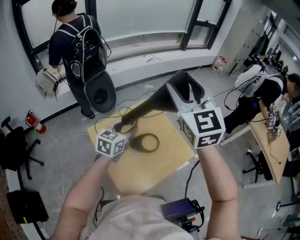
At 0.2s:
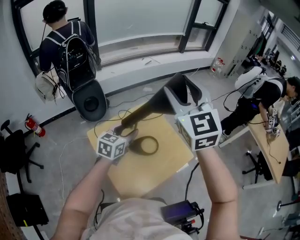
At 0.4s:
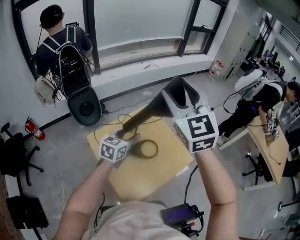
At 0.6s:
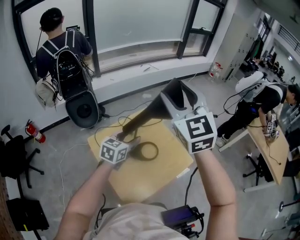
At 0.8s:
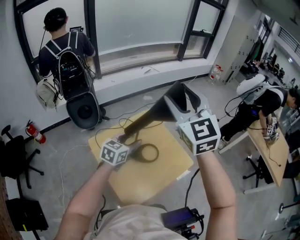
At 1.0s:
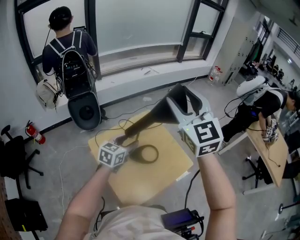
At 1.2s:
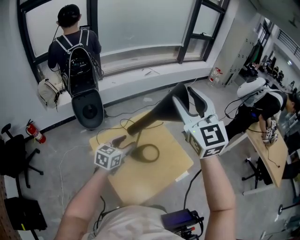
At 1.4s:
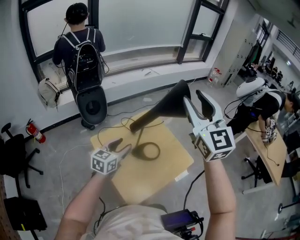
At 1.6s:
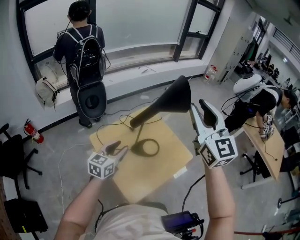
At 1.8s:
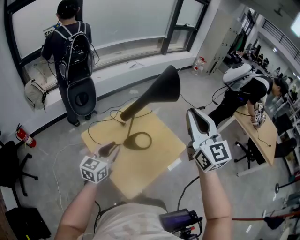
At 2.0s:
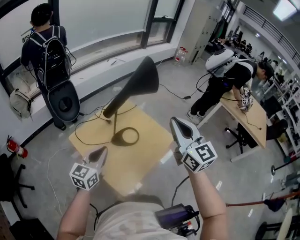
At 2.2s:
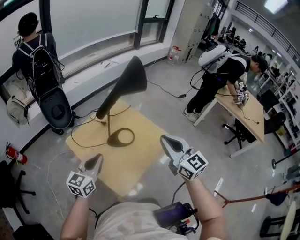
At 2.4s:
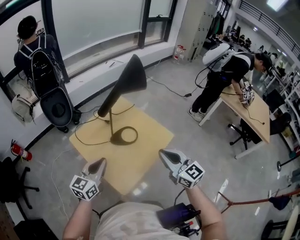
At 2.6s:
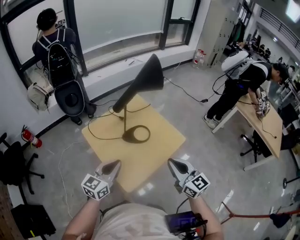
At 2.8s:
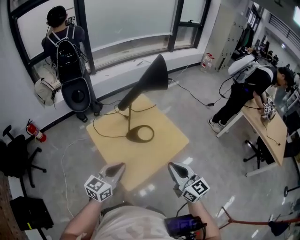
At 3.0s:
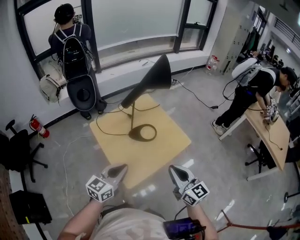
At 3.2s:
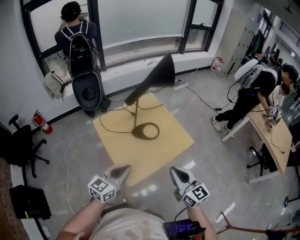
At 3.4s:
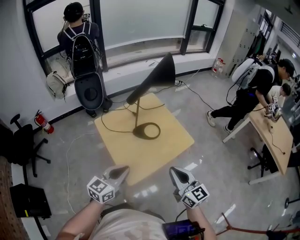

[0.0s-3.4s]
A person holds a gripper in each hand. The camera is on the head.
0.0s to 1.6s: The left gripper heads backward and to the left, covering some 10 cm; the right gripper goes roughly 10 cm backward and to the right.
1.6s to 3.4s: The left gripper shifts about 20 cm backward, and closes up, while the right gripper is displaced downward and backward by approximately 35 cm, turns by some 30 degrees, and closes its fingers.

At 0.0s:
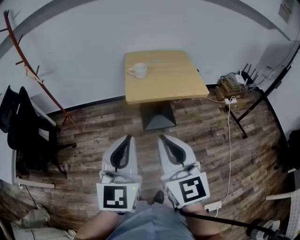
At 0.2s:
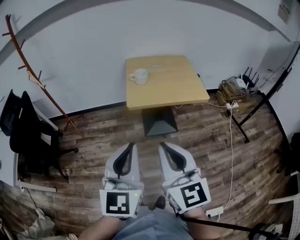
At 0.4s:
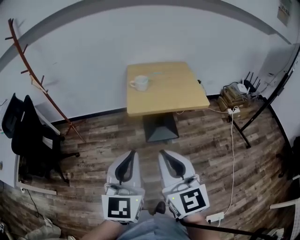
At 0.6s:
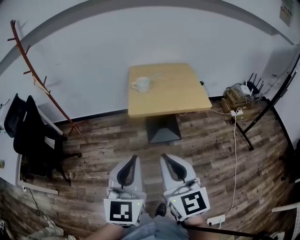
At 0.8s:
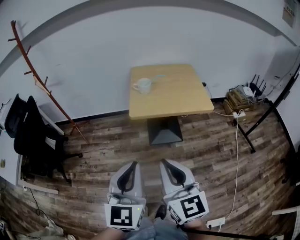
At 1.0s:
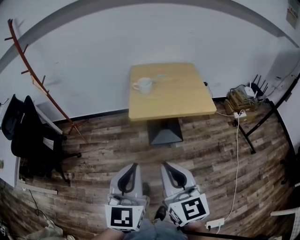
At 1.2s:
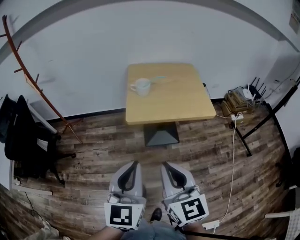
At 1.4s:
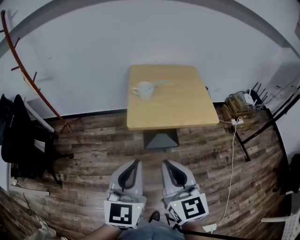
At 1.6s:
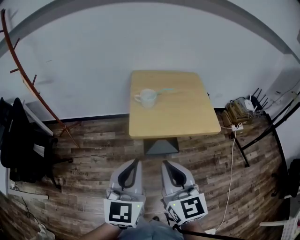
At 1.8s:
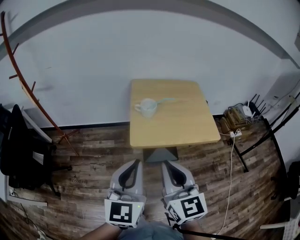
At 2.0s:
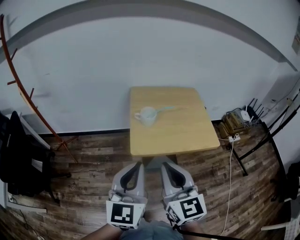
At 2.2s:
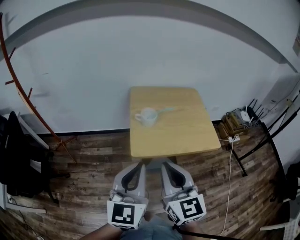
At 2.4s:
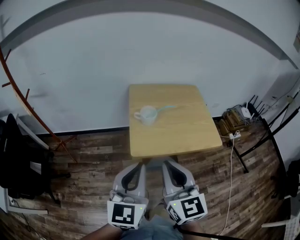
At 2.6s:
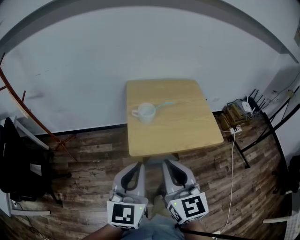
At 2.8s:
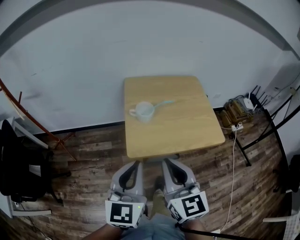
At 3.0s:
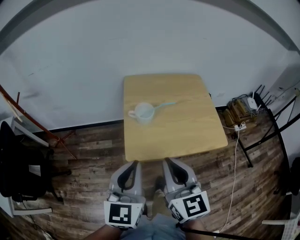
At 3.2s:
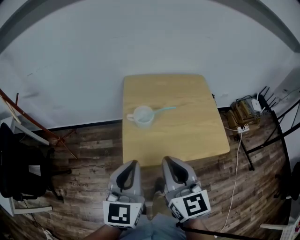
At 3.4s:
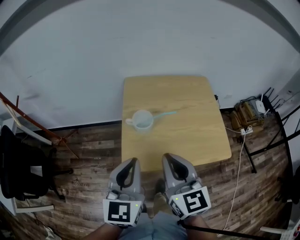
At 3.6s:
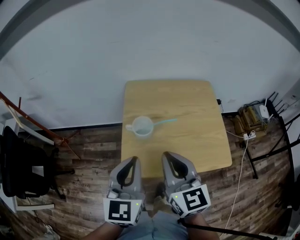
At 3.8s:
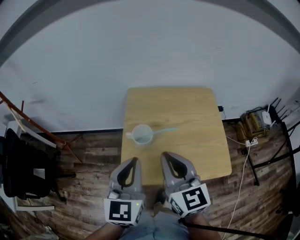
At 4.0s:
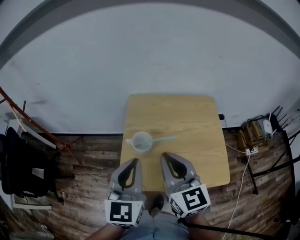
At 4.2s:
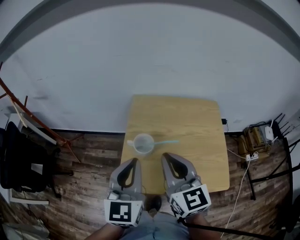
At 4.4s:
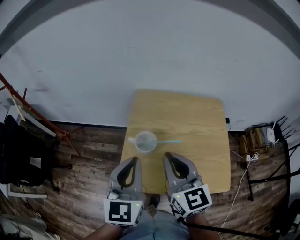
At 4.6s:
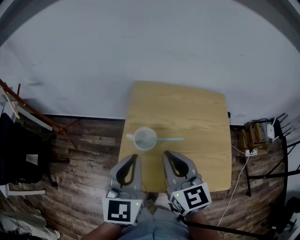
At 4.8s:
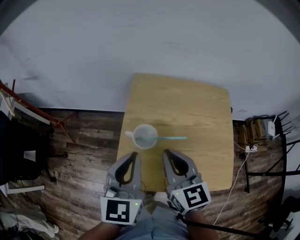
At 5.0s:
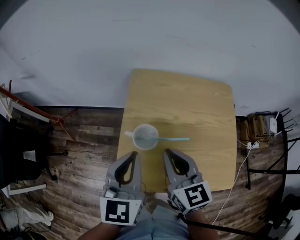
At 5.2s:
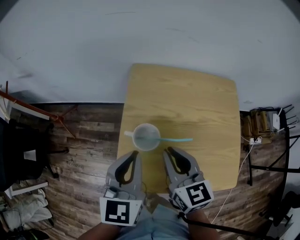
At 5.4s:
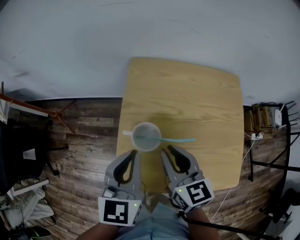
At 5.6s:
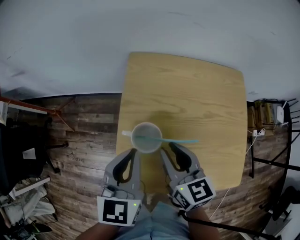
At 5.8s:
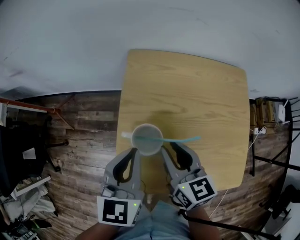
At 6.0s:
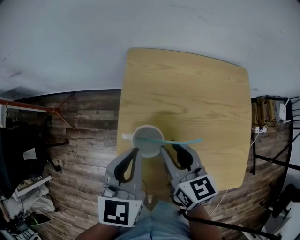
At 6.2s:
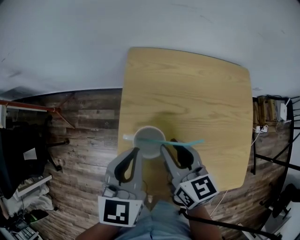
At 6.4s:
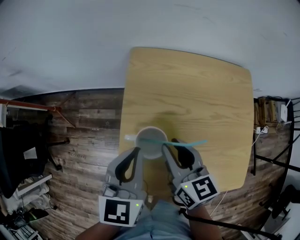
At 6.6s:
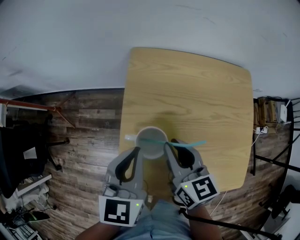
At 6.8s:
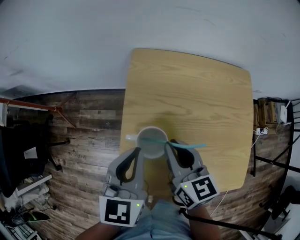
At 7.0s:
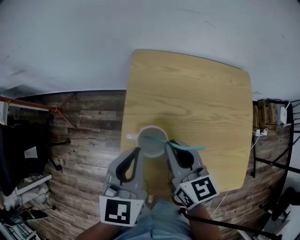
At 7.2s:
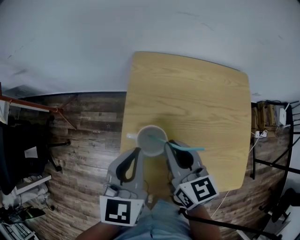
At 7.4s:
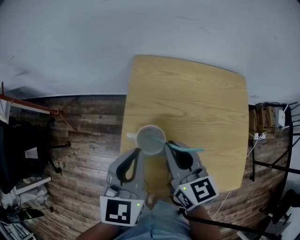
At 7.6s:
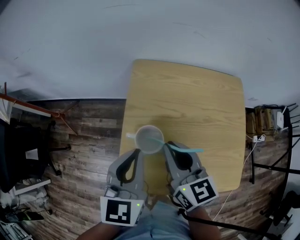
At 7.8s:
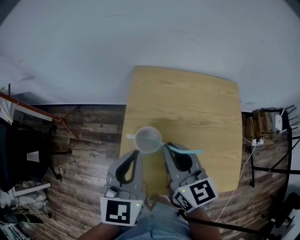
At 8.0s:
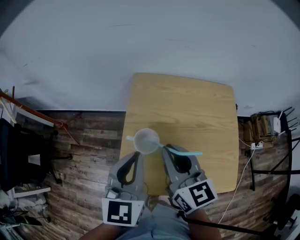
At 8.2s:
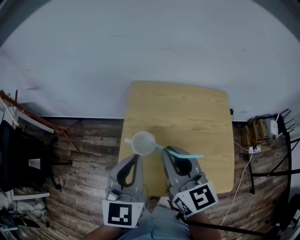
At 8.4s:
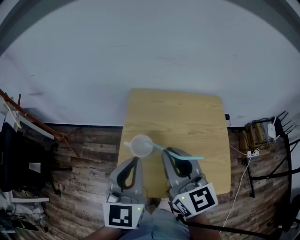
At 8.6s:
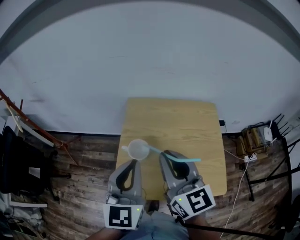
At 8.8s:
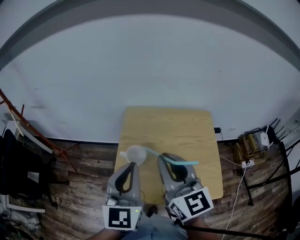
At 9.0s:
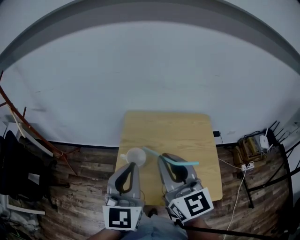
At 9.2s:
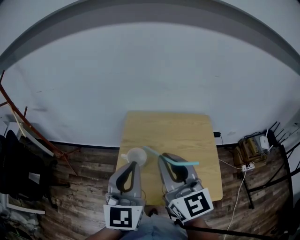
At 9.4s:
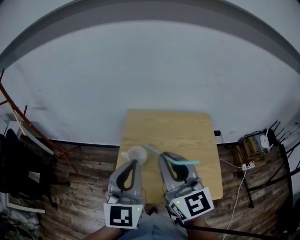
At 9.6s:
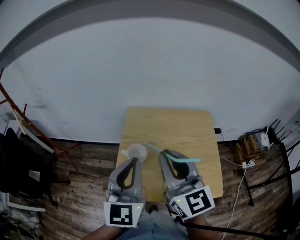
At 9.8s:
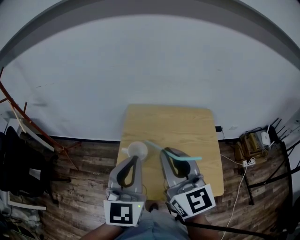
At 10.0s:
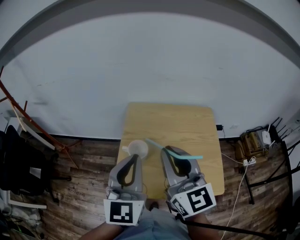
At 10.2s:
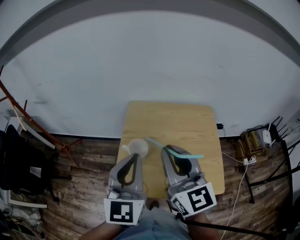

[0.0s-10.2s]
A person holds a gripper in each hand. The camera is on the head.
0.0s to 1.4s: Both grippers travel together forward and downward, roughly 15 cm.
1.4s to 3.0s: Both grippers move forward, some 20 cm.
3.0s to 4.4s: Both grippers move forward, approximately 20 cm.
4.4s to 5.8s: The two grippers go about 15 cm downward and forward. The right gripper rotates some 20 degrees, and opens its fingers.
5.8s to 7.2s: The grippers stay close to where they were, moving slightly.
7.2s to 8.8s: Both grippers move upward and backward, roughly 20 cm. The left gripper turns by approximately 20 degrees, while the right gripper turns by roughly 30 degrees.
8.8s to 10.2s: The grippers stay close to where they were, moving slightly.

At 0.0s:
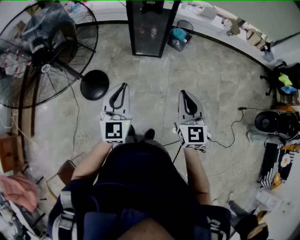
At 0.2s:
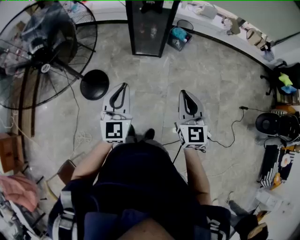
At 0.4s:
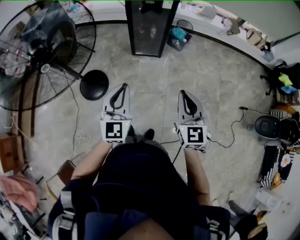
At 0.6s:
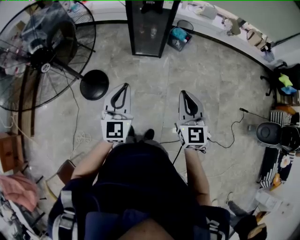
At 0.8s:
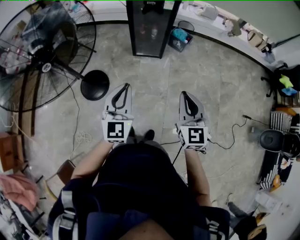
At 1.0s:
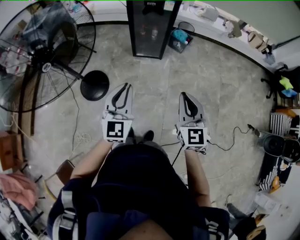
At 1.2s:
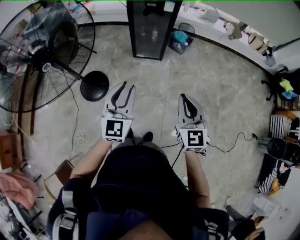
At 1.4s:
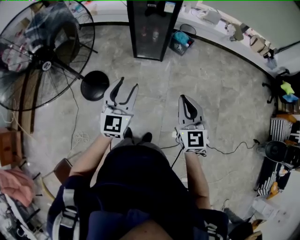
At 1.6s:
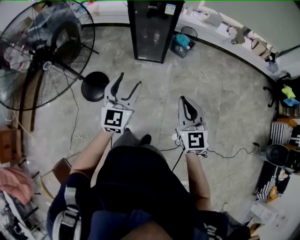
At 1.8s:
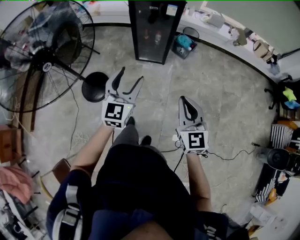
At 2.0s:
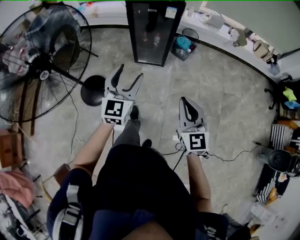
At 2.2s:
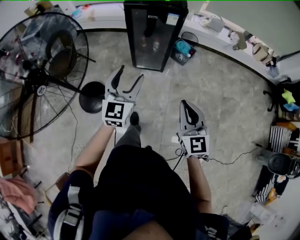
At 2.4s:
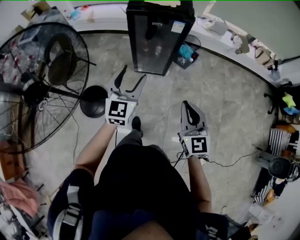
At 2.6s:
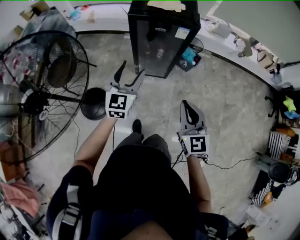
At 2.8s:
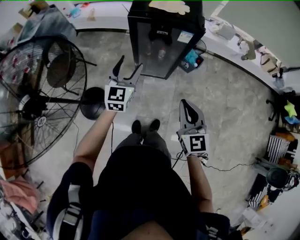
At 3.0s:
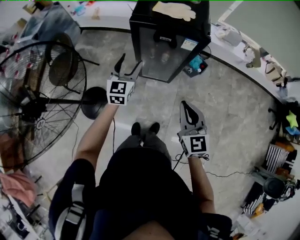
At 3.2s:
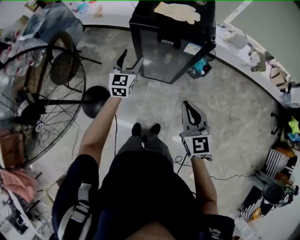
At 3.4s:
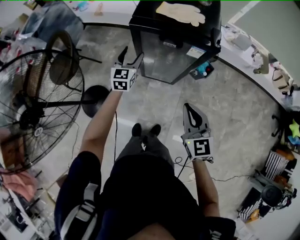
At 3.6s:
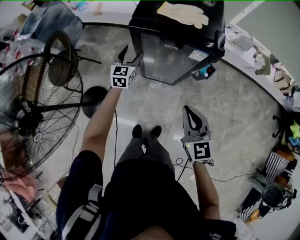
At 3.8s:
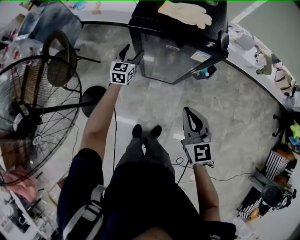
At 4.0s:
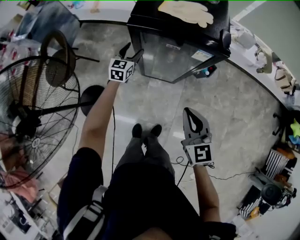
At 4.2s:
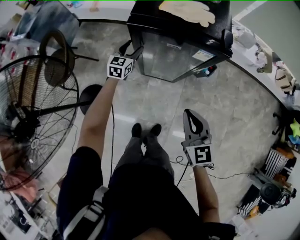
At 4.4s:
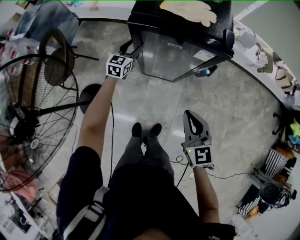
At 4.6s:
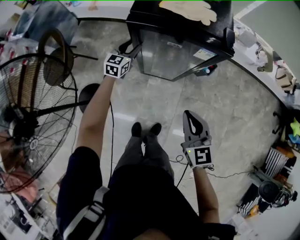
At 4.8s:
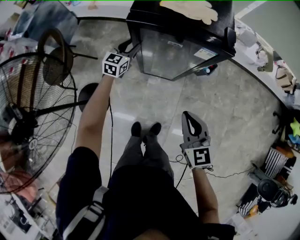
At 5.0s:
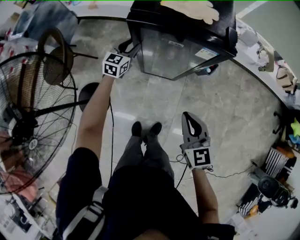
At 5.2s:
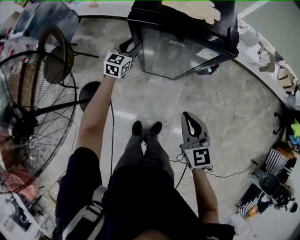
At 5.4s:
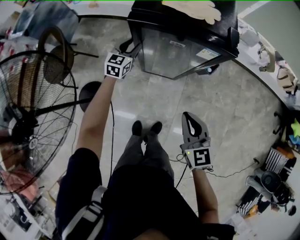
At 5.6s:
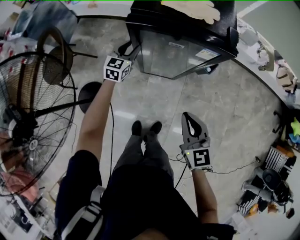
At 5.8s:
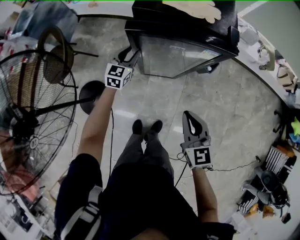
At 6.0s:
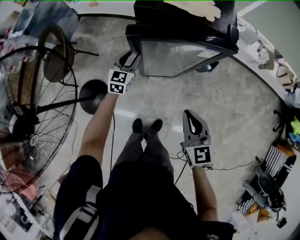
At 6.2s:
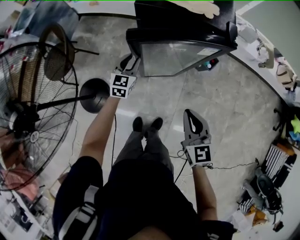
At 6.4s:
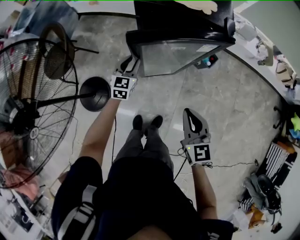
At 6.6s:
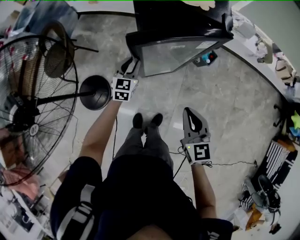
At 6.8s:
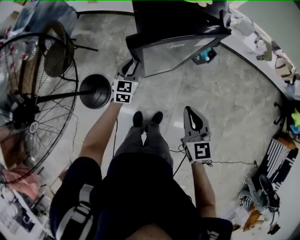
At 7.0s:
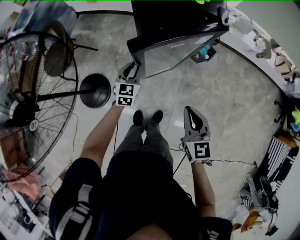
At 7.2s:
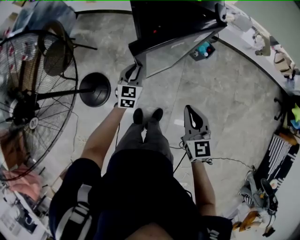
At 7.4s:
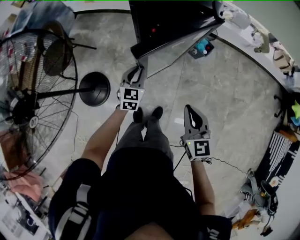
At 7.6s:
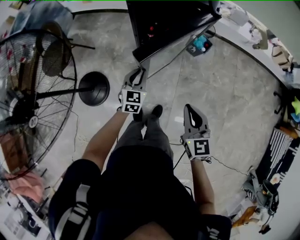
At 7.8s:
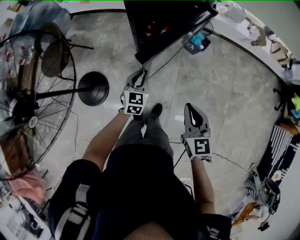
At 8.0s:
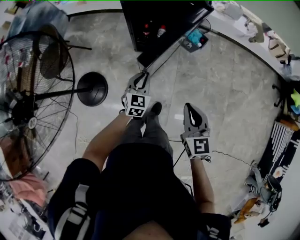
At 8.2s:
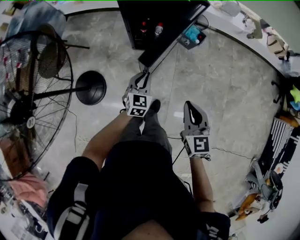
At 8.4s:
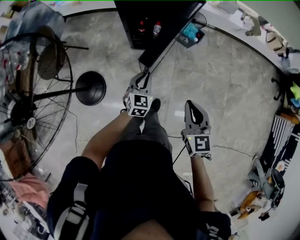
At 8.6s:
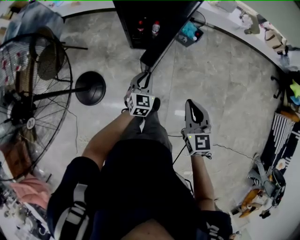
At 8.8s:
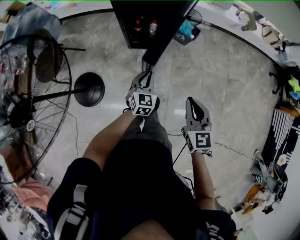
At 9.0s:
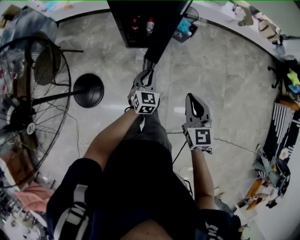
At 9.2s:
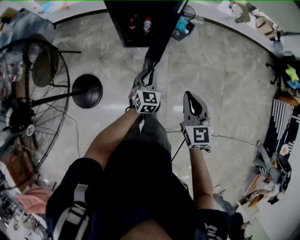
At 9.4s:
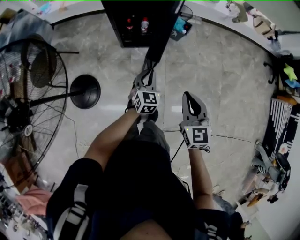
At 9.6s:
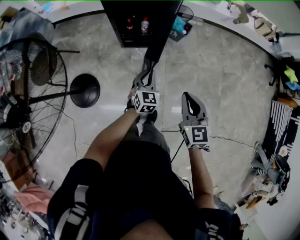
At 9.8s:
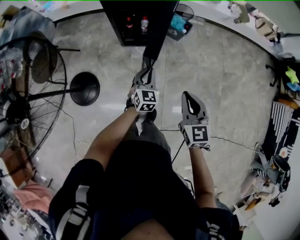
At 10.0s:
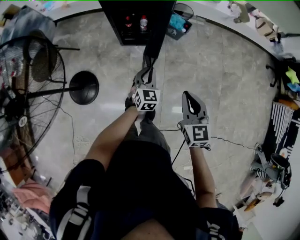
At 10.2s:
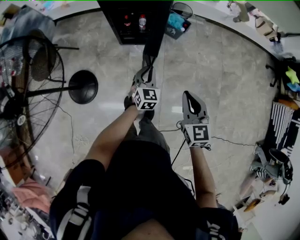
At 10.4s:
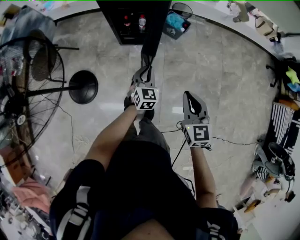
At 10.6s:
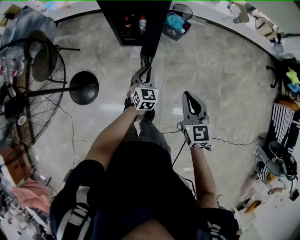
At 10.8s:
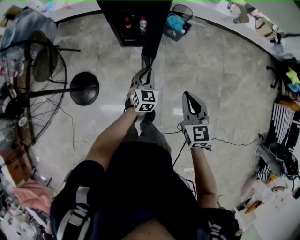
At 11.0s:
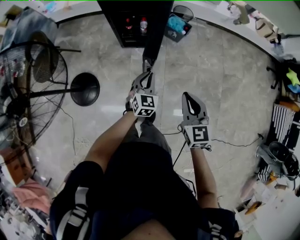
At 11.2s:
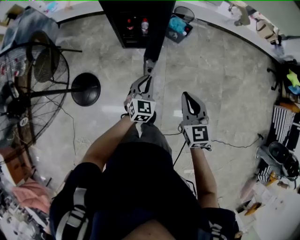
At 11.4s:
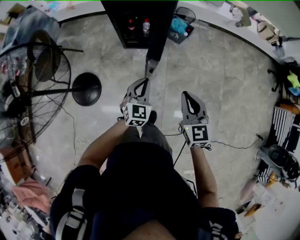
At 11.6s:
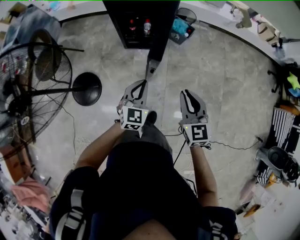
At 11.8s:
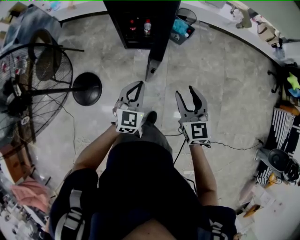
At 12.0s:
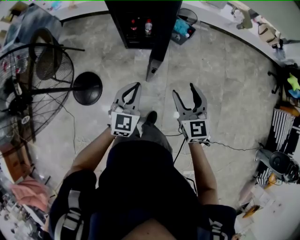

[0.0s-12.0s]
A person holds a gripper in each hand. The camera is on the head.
0.0s to 1.6s: The left gripper shifts about 10 cm to the right and forward, and opens its fingers, while the right gripper ends up approximately 5 cm from where it was.
1.6s to 3.0s: Both grippers are carried forward, approximately 50 cm.
3.0s to 4.4s: The right gripper goes approximately 15 cm forward and downward. Meanwhile the left gripper heads forward and downward, covering roughly 25 cm.
4.4s to 6.0s: The left gripper goes some 10 cm backward.
6.0s to 7.6s: The right gripper goes about 15 cm backward. The left gripper heads backward, covering about 20 cm.
7.6s to 9.0s: The left gripper is displaced to the right and backward by roughly 10 cm. The right gripper goes about 5 cm backward.
9.0s to 10.4s: Both grippers move to the right, about 10 cm.
10.4s to 12.0s: The left gripper travels upward, to the left and backward by some 15 cm; the right gripper is displaced to the left by some 5 cm, and opens.
